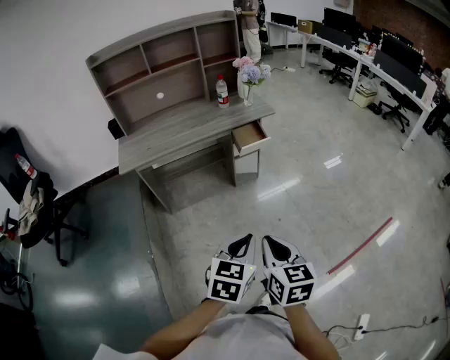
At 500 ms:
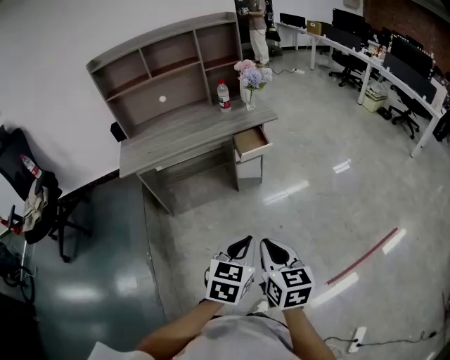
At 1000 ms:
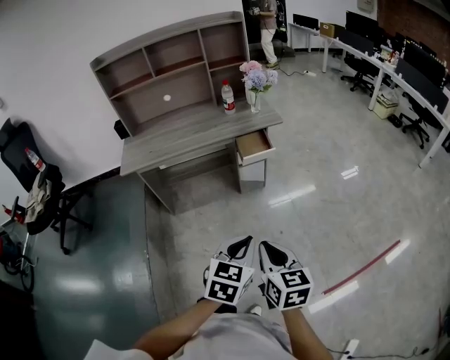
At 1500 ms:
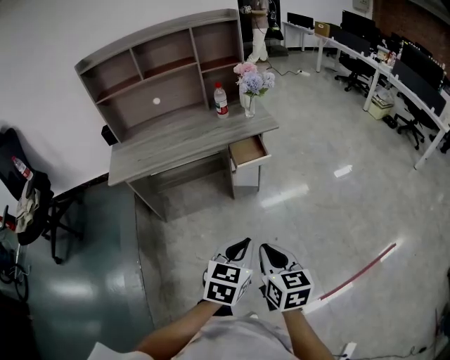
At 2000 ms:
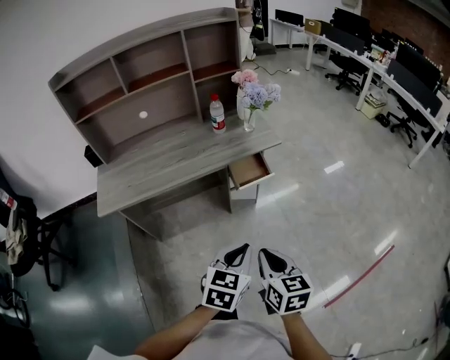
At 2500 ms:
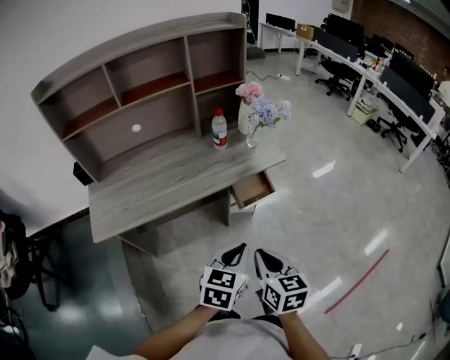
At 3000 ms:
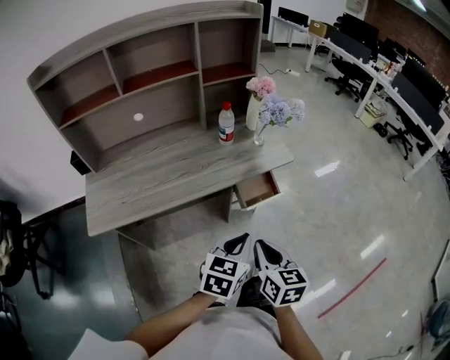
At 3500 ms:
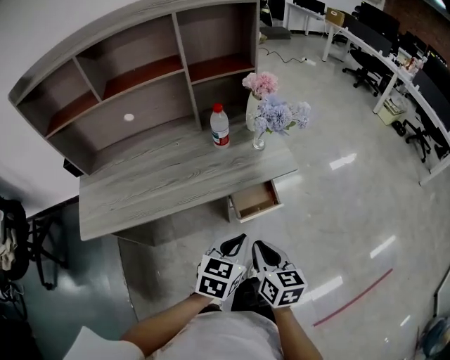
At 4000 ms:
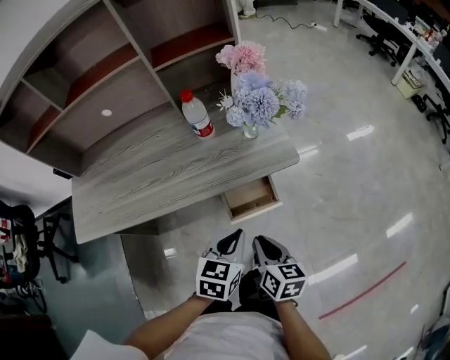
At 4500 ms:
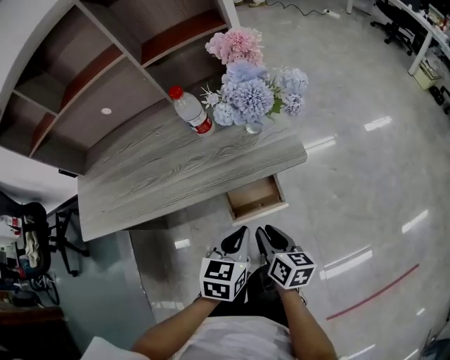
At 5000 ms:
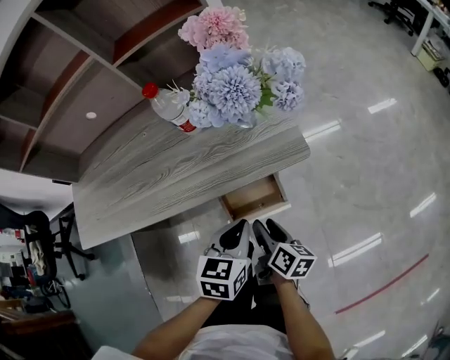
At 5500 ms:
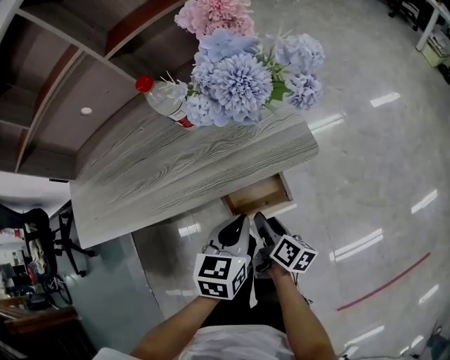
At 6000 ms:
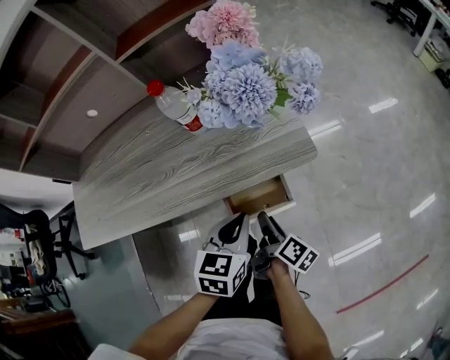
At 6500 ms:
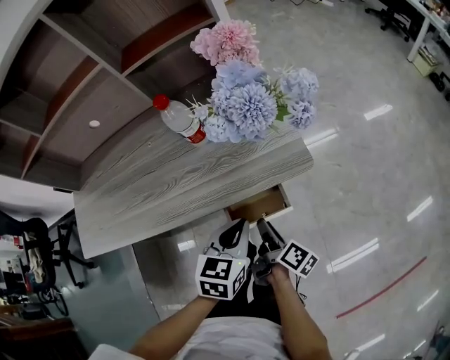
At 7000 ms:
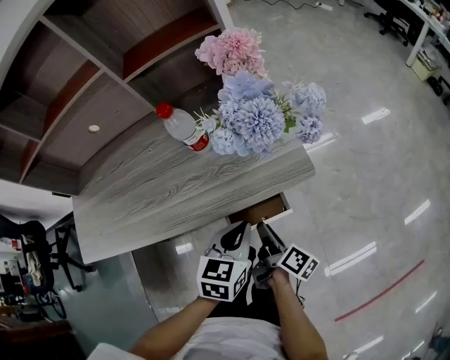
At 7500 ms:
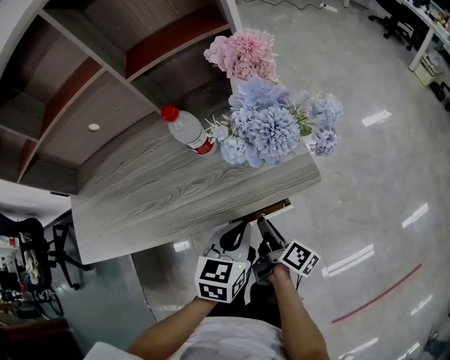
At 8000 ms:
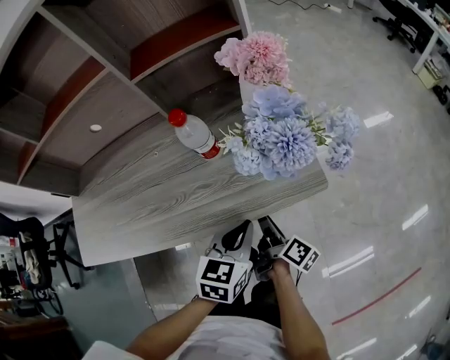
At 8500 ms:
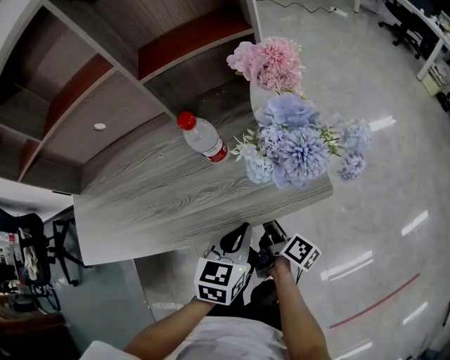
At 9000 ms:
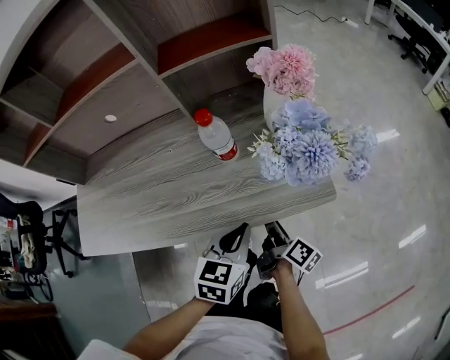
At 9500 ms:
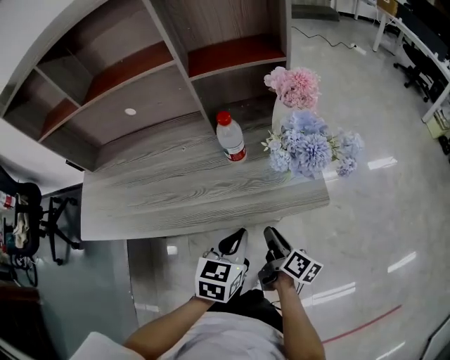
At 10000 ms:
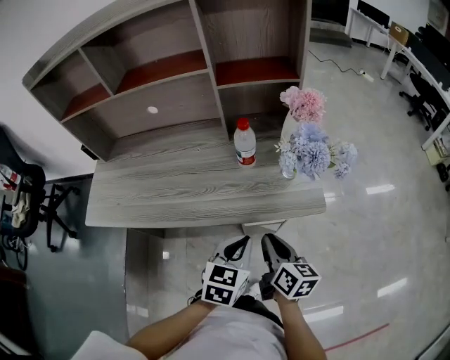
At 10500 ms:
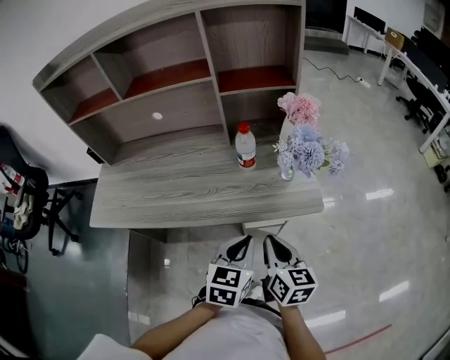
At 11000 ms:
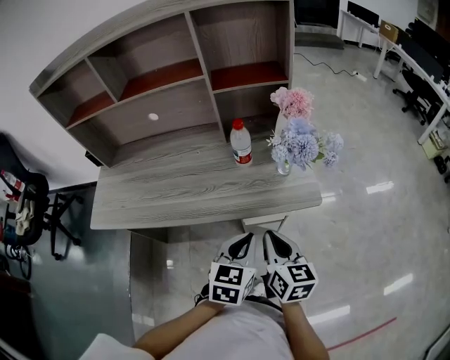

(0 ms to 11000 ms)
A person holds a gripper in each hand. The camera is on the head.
0 ms - 2000 ms: Both grippers travel together forward, approximately 25 cm.
2000 ms - 3500 ms: Both grippers move forward, about 25 cm.
3500 ms - 5500 ms: The right gripper travels downward and forward by approximately 30 cm, twists approximately 50 degrees clockwise, seen from behind, and opens its fingers; the left gripper travels forward and downward by some 20 cm.
5500 ms - 7500 ms: The right gripper heads upward and forward, covering some 5 cm, while the left gripper ends up about 5 cm from where it was.
7500 ms - 9000 ms: The right gripper shifts by approximately 5 cm.
9000 ms - 11000 ms: The left gripper moves backward and upward, approximately 10 cm. The right gripper shifts some 20 cm upward and backward, rolls counterclockwise, seen from behind, by about 60 degrees, and closes up.

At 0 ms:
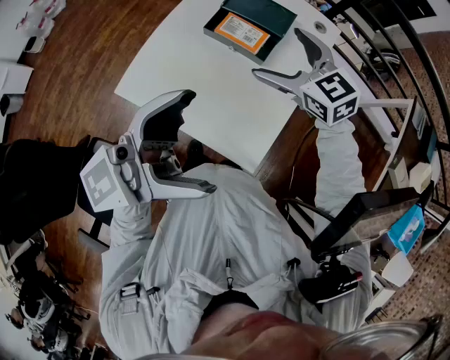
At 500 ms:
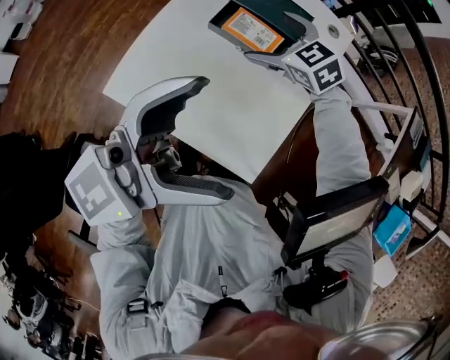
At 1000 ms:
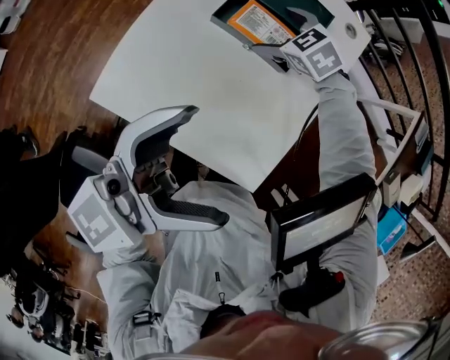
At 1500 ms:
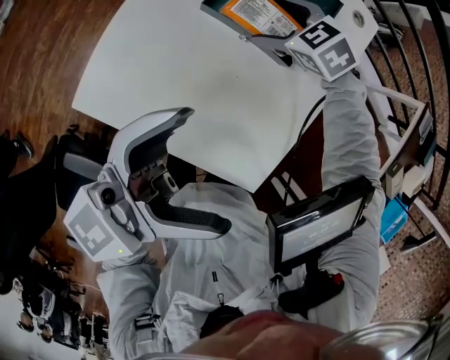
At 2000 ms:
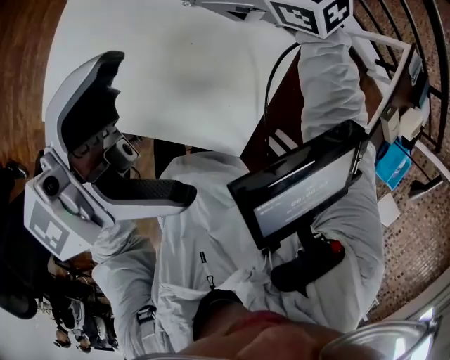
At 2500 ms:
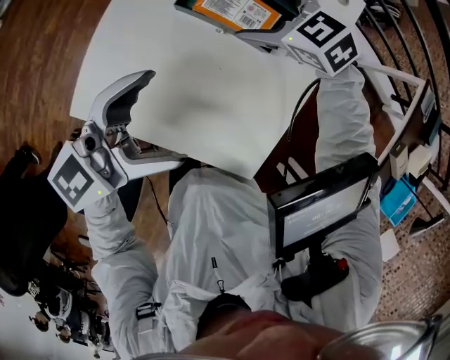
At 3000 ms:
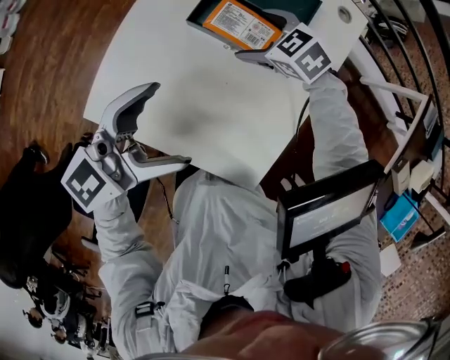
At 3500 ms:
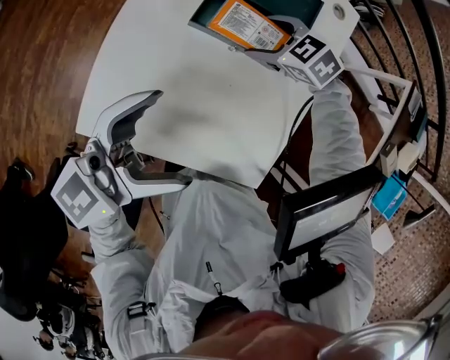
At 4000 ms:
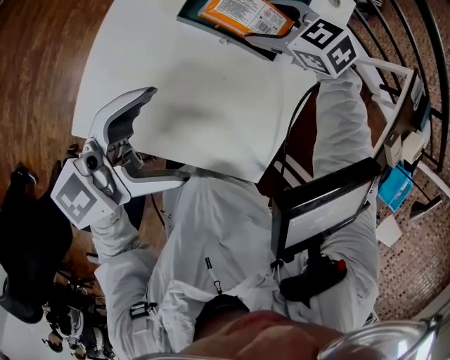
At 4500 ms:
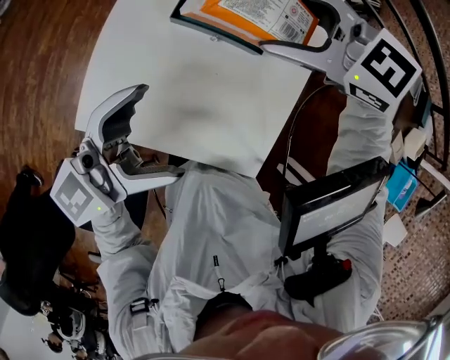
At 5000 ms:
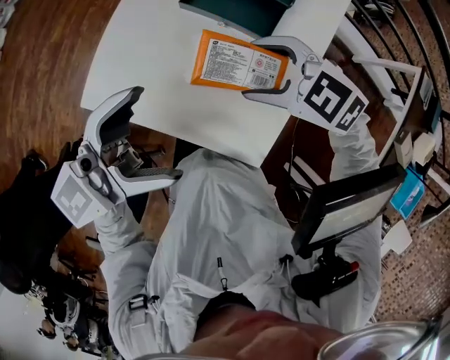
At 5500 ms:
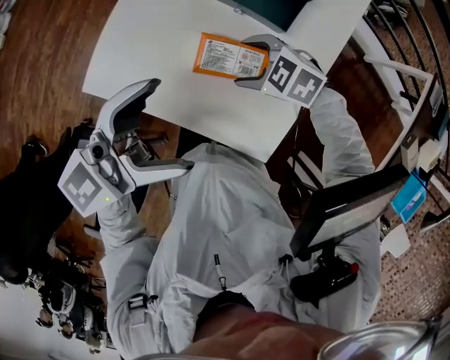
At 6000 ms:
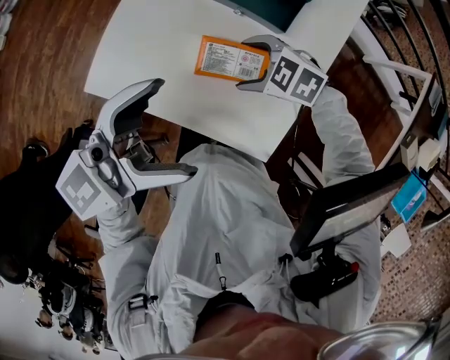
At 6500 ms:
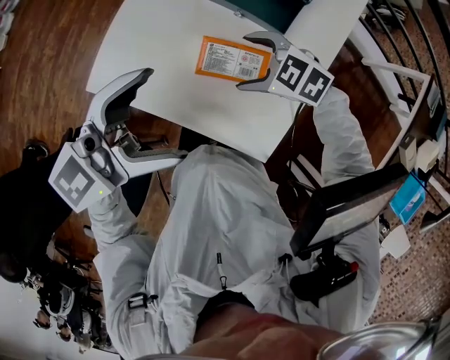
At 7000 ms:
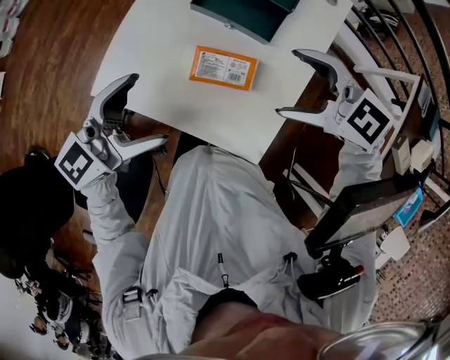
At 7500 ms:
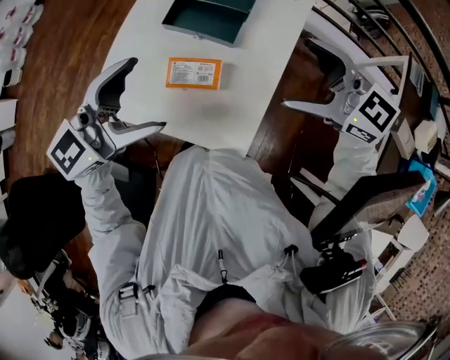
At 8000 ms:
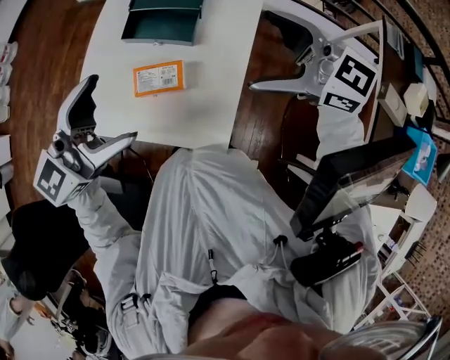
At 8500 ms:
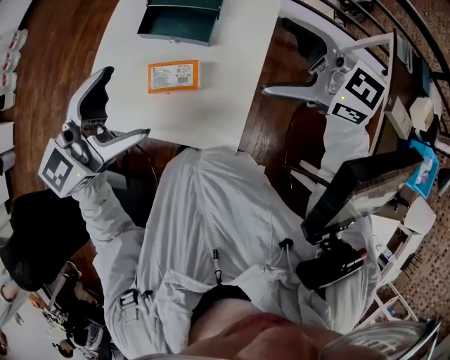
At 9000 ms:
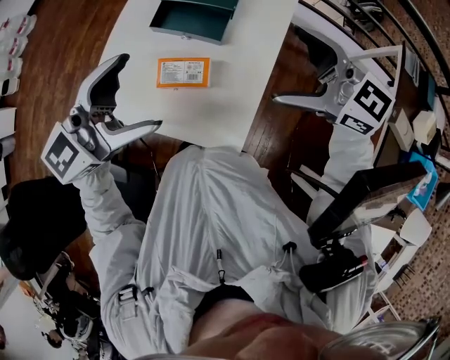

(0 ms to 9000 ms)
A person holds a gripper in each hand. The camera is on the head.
0 ms - 2000 ms: The right gripper travels downward by some 15 cm; the left gripper ends up roughly 20 cm from where it was.
2000 ms - 4500 ms: The left gripper moves downward, roughly 10 cm. Meanwhile the right gripper heads upward, covering some 10 cm.
4500 ms - 7000 ms: The left gripper ends up roughly 5 cm from where it was. The right gripper reaches approximately 20 cm downward, then returns.
7000 ms - 9000 ms: The left gripper ends up roughly 15 cm from where it was. Meanwhile the right gripper ends up about 15 cm from where it was, and swivels about 20 degrees.

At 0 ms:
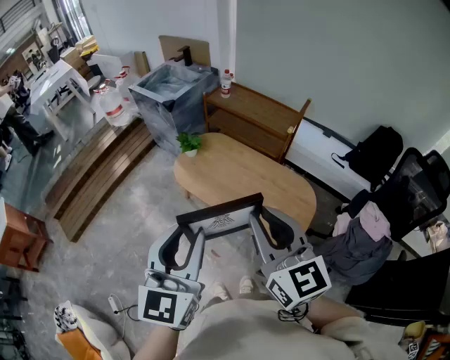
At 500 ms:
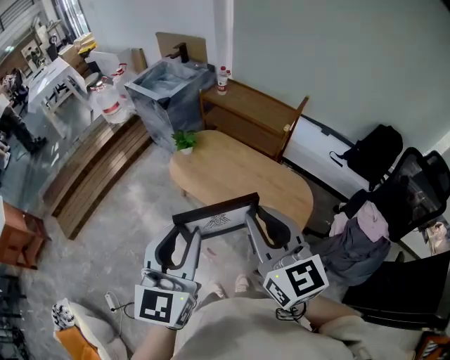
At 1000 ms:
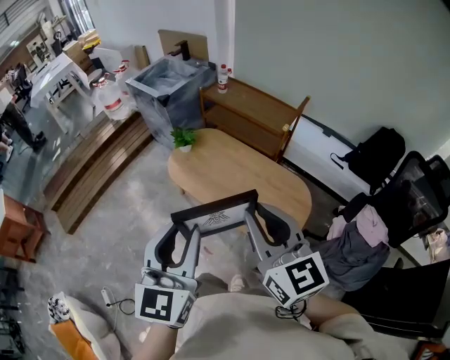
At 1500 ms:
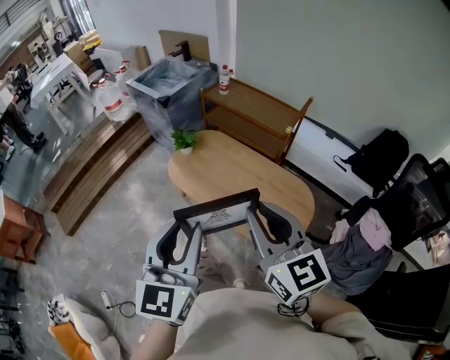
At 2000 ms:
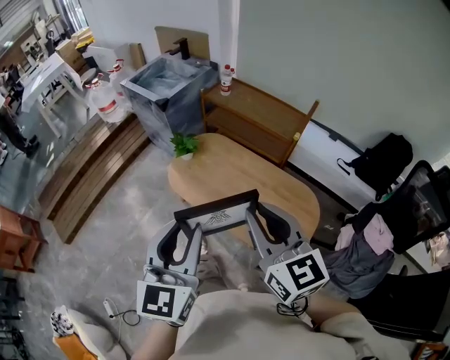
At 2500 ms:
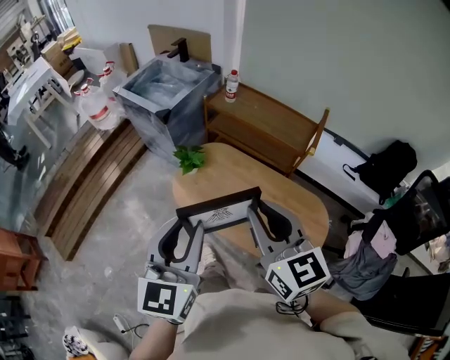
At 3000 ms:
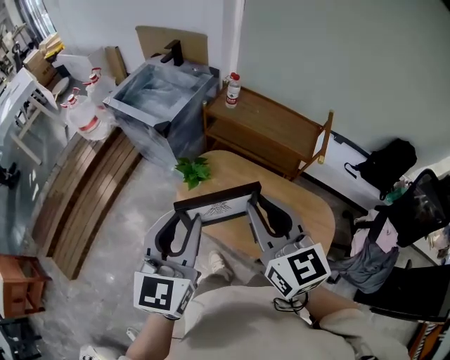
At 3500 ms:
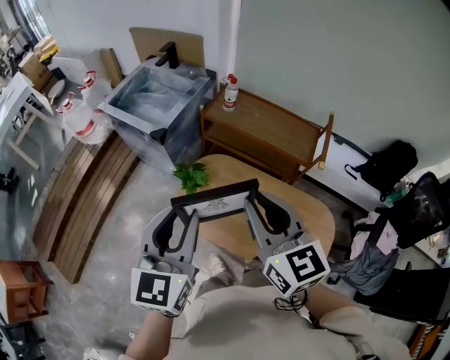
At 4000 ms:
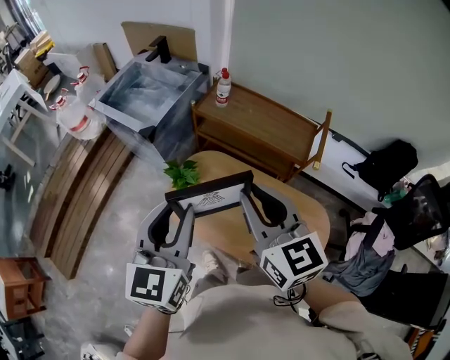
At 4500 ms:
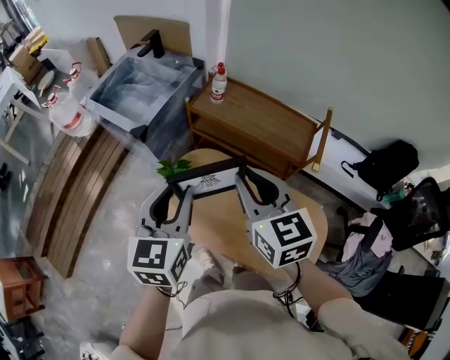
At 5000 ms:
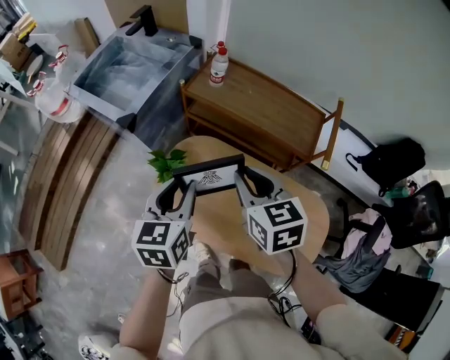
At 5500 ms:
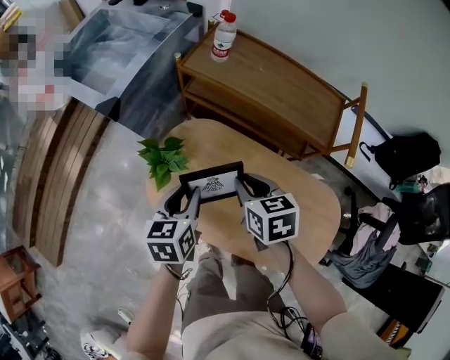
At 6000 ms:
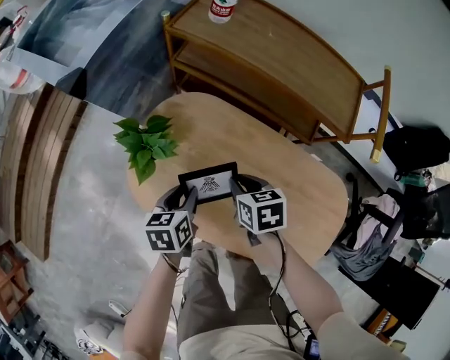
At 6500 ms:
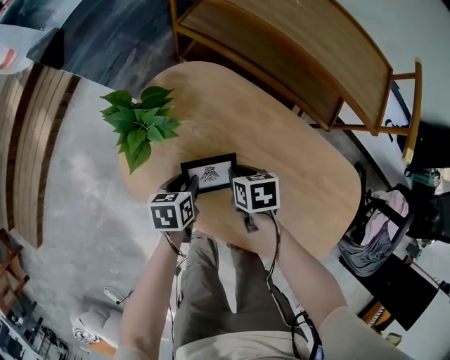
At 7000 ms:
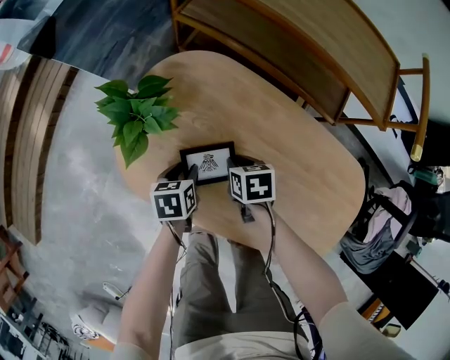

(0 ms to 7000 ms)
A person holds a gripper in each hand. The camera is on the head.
0 ms - 2000 ms: Both grippers move forward and downward, roughly 15 cm.
2000 ms - 3500 ms: Both grippers travel together forward and to the left, approximately 35 cm.
3500 ms - 5000 ms: The two grippers go approximately 25 cm downward and forward. The left gripper turns by roughly 20 degrees. Meanwhile the right gripper changes its angle by about 20 degrees.
5000 ms - 7000 ms: The grippers both shift downward by some 50 cm. The left gripper tilts its fingers roughly 30 degrees downward. The right gripper tips its fingers downward by some 30 degrees.
